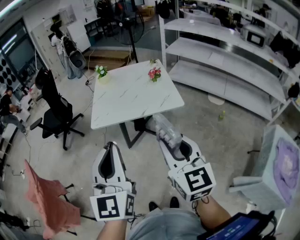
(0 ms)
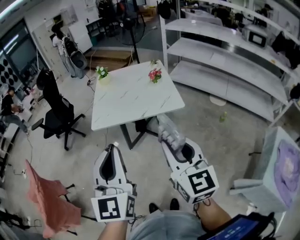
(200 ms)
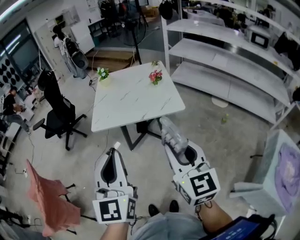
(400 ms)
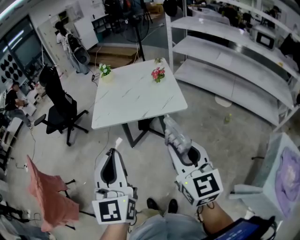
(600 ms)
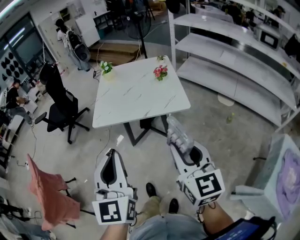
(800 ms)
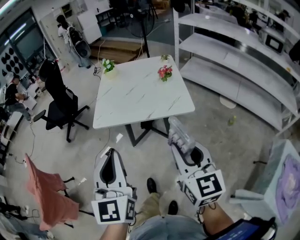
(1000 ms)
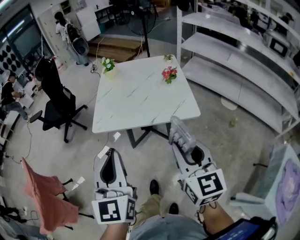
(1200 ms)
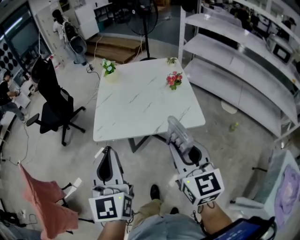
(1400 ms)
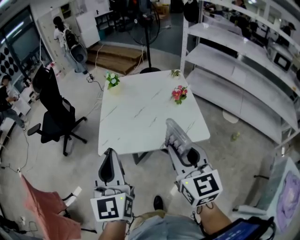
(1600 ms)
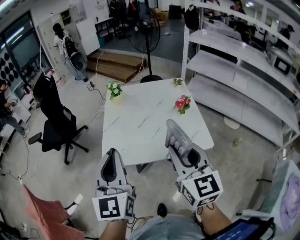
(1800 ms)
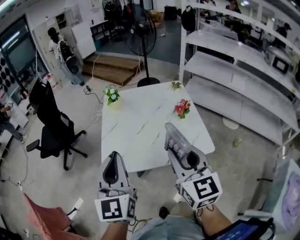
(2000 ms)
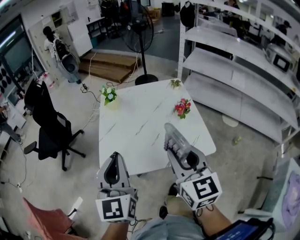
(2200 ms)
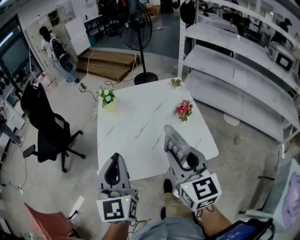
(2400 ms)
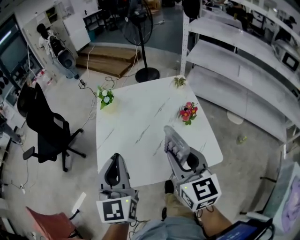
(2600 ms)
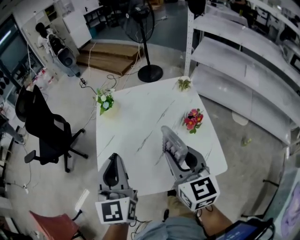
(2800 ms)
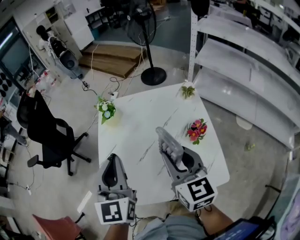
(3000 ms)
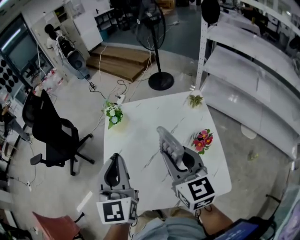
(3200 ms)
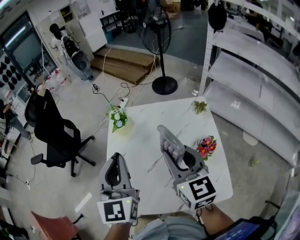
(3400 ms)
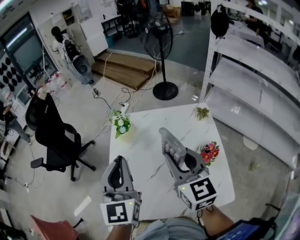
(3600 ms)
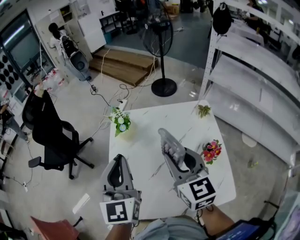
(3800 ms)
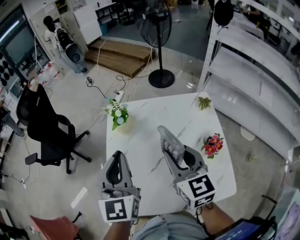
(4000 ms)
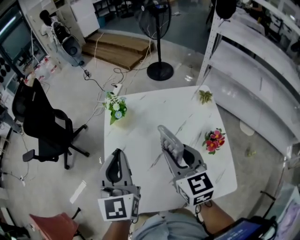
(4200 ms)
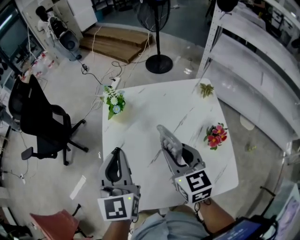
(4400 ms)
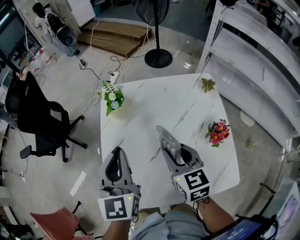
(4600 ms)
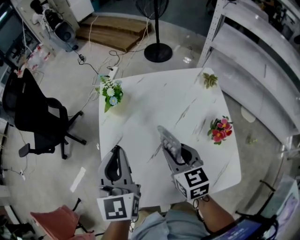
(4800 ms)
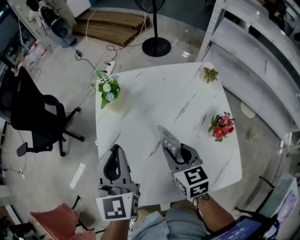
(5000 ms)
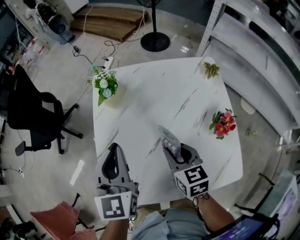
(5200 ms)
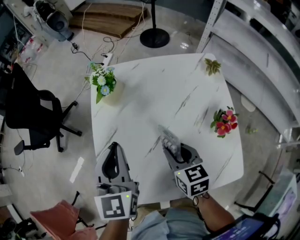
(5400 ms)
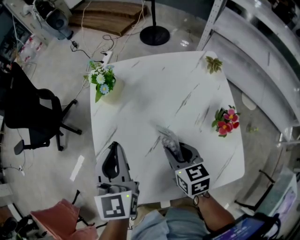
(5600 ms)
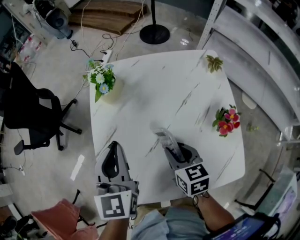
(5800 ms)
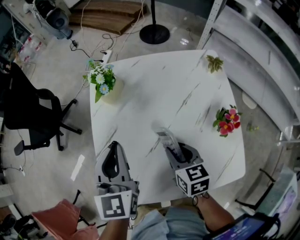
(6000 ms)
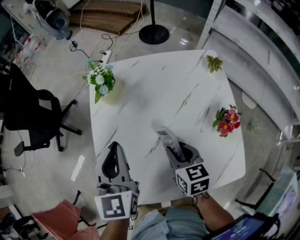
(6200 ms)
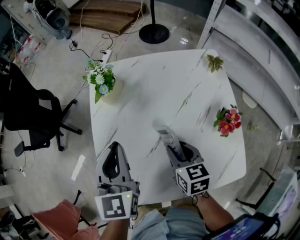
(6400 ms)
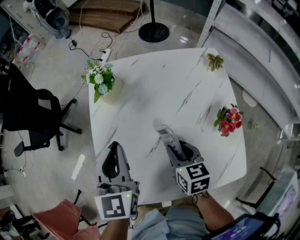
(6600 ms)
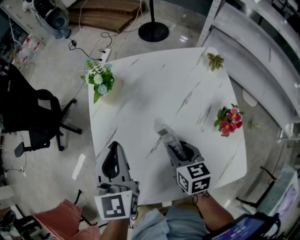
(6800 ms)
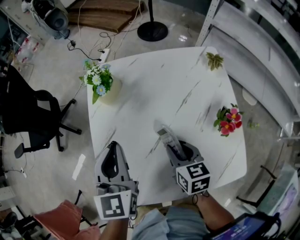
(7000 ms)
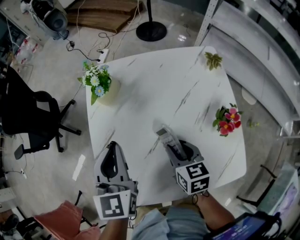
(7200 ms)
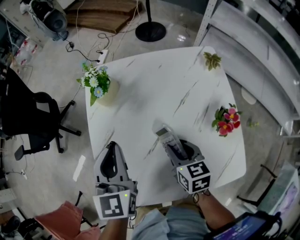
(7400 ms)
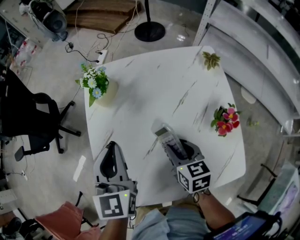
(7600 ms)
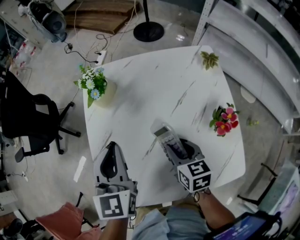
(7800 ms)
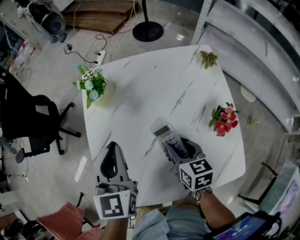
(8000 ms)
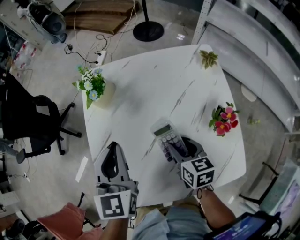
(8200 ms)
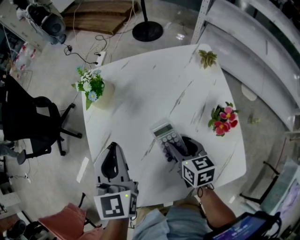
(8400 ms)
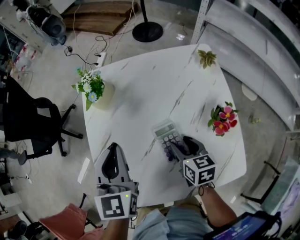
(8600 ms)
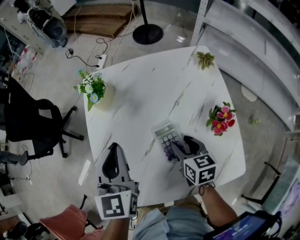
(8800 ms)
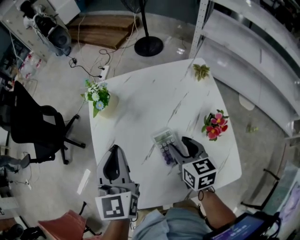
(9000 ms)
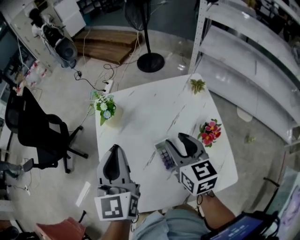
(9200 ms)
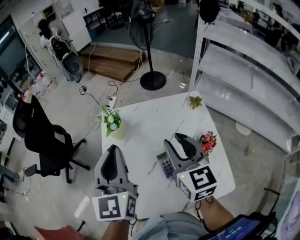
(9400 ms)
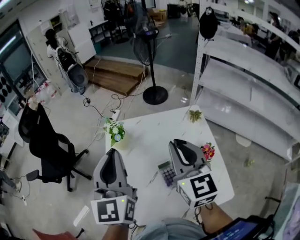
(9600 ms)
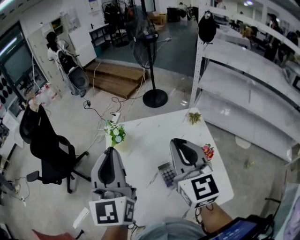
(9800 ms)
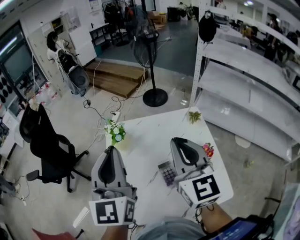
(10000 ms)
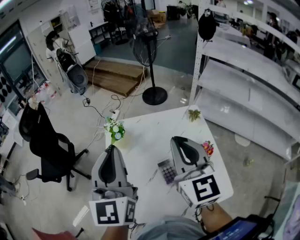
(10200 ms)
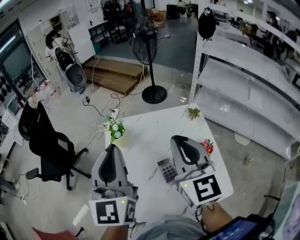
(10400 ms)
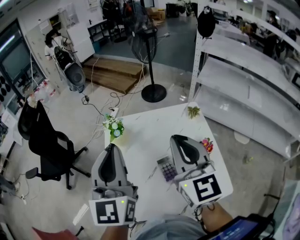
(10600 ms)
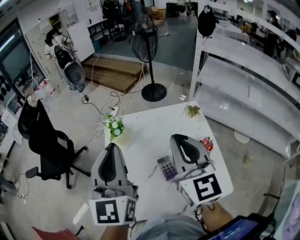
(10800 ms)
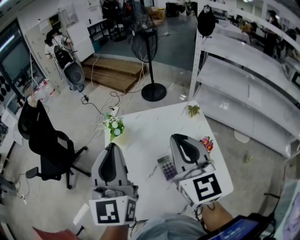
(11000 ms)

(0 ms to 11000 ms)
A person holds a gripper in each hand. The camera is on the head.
0 ms - 1600 ms: Both grippers travel together forward, some 25 cm.
1600 ms - 3200 ms: Both grippers travel together forward, about 35 cm.
3200 ms - 4800 ms: The right gripper is displaced downward by some 15 cm, and rotates some 20 degrees, while the left gripper shifts some 10 cm downward and forward.
4800 ms - 6200 ms: The right gripper shifts approximately 10 cm downward. Meanwhile the left gripper goes some 5 cm downward.
6200 ms - 7800 ms: The grippers stay close to where they were, moving slightly.
7800 ms - 9400 ms: The left gripper heads upward, covering about 15 cm. The right gripper travels upward by approximately 25 cm, and rotates about 30 degrees.
9400 ms - 11000 ms: The two grippers go some 10 cm upward. The right gripper closes its fingers.

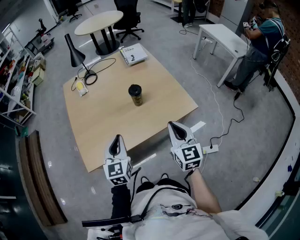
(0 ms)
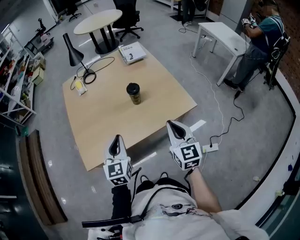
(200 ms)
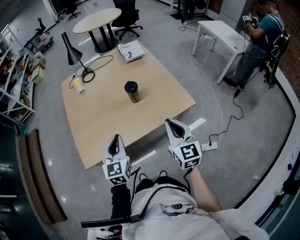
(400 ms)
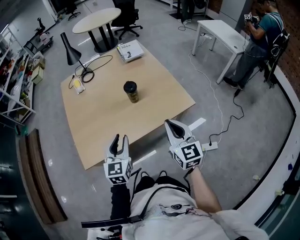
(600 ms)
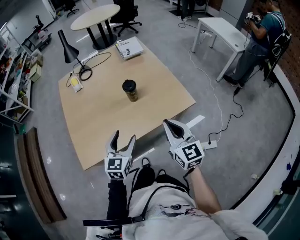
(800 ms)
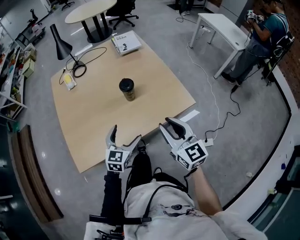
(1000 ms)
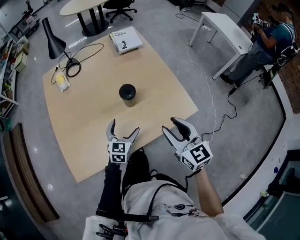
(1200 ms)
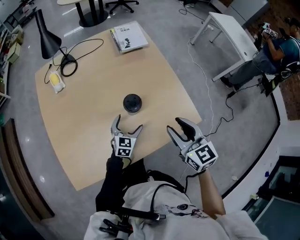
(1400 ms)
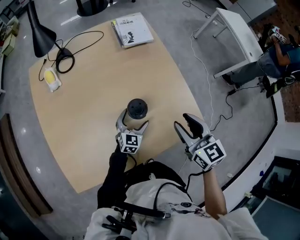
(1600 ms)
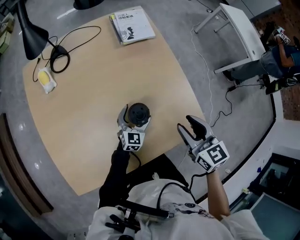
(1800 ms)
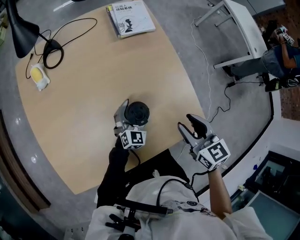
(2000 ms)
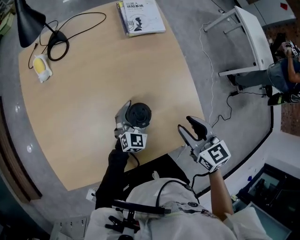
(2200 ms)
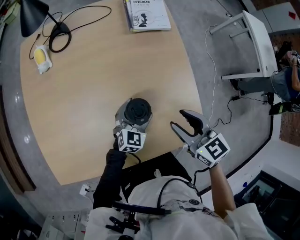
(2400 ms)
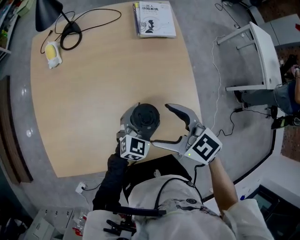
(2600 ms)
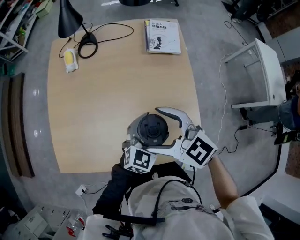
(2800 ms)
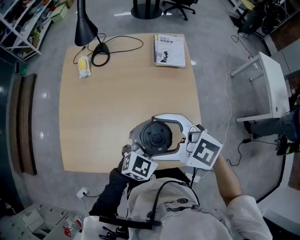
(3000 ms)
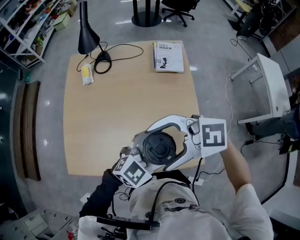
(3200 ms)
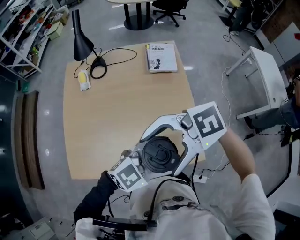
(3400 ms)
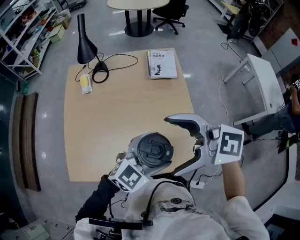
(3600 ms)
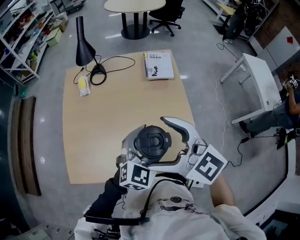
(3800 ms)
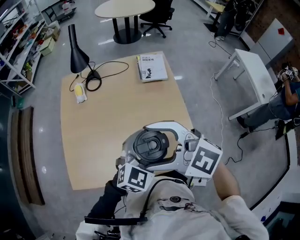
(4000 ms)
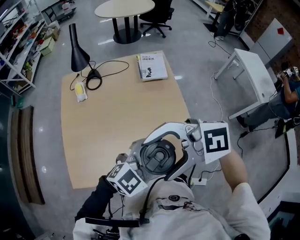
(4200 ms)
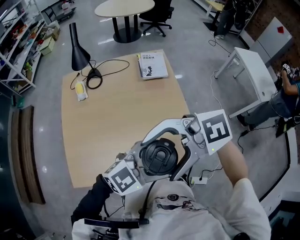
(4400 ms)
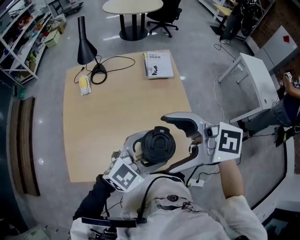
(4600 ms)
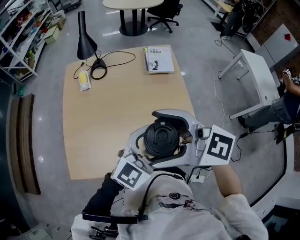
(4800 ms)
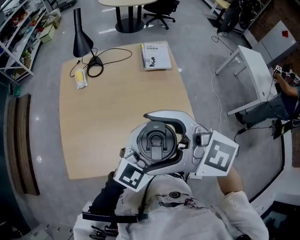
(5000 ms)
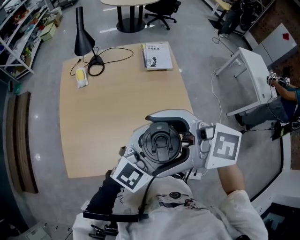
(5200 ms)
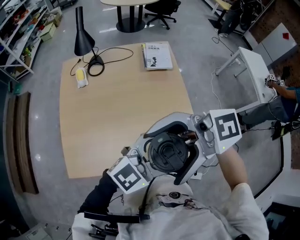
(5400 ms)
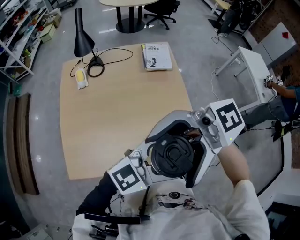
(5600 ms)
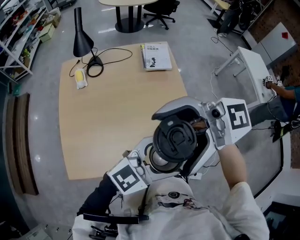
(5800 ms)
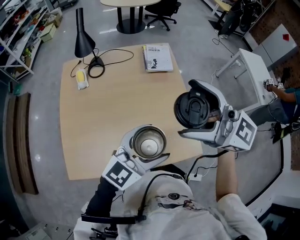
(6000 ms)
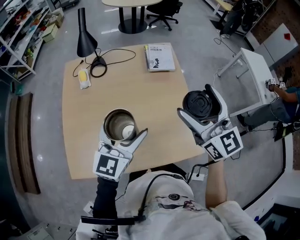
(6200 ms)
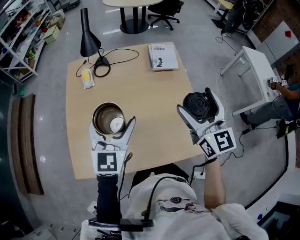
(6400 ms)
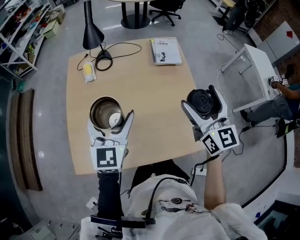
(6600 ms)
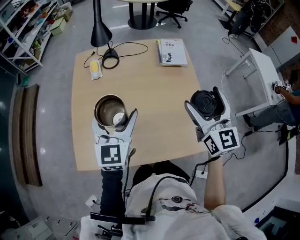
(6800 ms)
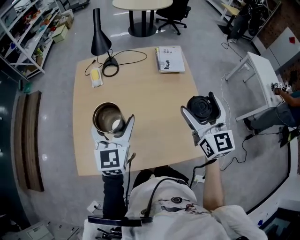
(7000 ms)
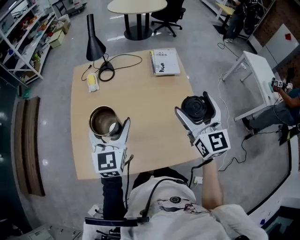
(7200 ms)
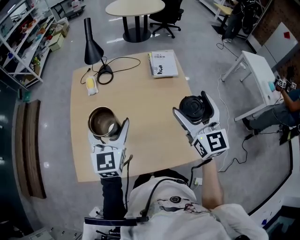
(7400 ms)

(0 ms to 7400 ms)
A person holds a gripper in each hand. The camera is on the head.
0 ms - 1400 ms: The right gripper moves forward, roughly 20 cm. The left gripper heads downward and forward, covering some 35 cm, swivels some 20 degrees, and opens.
1400 ms - 3000 ms: The left gripper moves upward, approximately 20 cm, while the right gripper ends up about 15 cm from where it was, changes its angle by about 70 degrees, and opens its fingers.
3000 ms - 4400 ms: The grippers both shift upward by roughly 15 cm. The right gripper rotates approximately 30 degrees; the left gripper turns by about 40 degrees.
4400 ms - 6000 ms: The left gripper ends up some 10 cm from where it was, and changes its angle by some 30 degrees, while the right gripper moves about 15 cm, and rotates roughly 60 degrees.
6000 ms - 7400 ms: The left gripper heads to the left and forward, covering about 20 cm, and changes its angle by some 50 degrees. The right gripper shifts roughly 10 cm downward, and changes its angle by some 40 degrees.

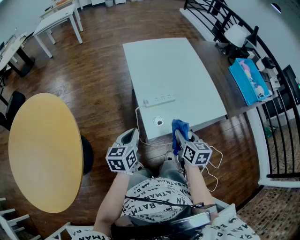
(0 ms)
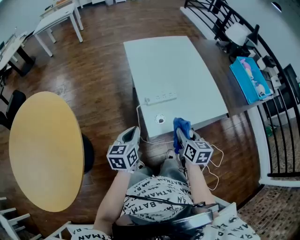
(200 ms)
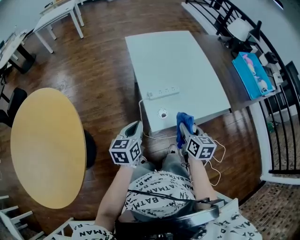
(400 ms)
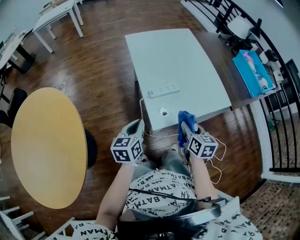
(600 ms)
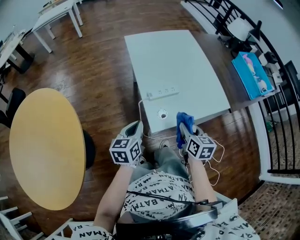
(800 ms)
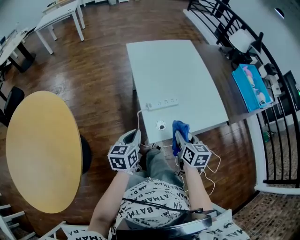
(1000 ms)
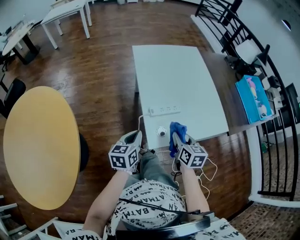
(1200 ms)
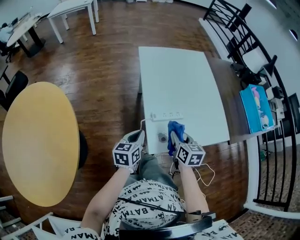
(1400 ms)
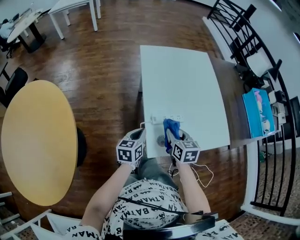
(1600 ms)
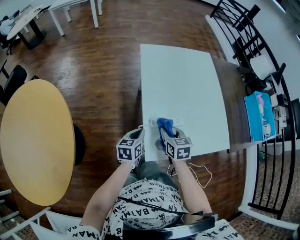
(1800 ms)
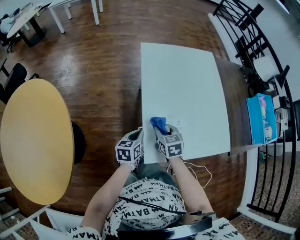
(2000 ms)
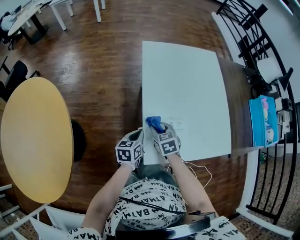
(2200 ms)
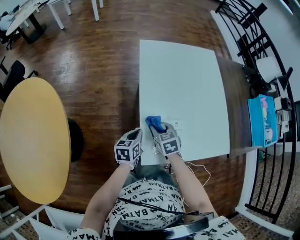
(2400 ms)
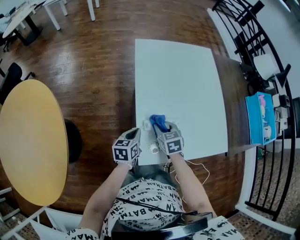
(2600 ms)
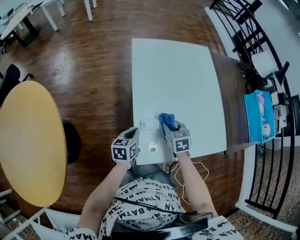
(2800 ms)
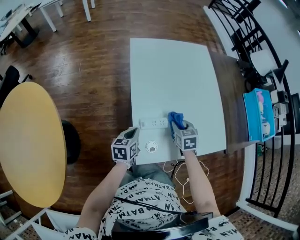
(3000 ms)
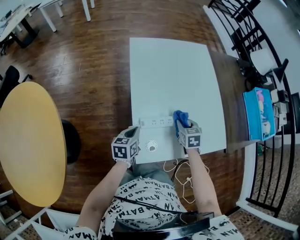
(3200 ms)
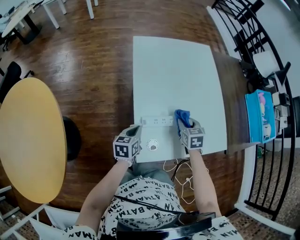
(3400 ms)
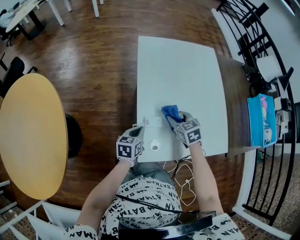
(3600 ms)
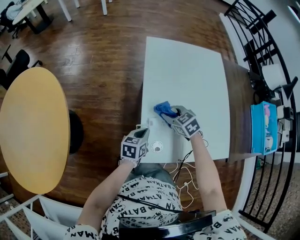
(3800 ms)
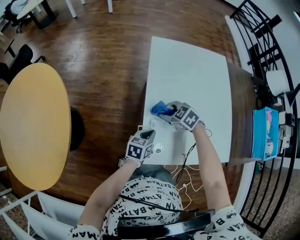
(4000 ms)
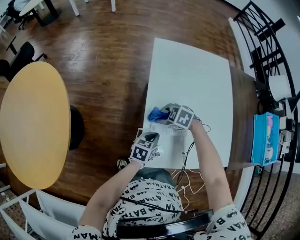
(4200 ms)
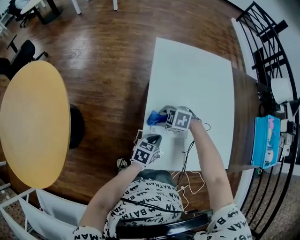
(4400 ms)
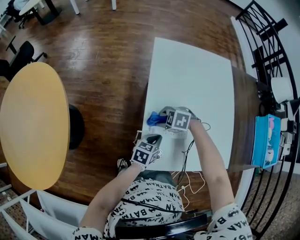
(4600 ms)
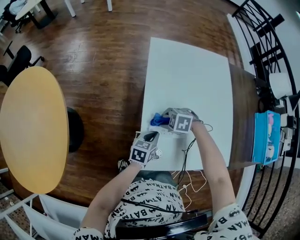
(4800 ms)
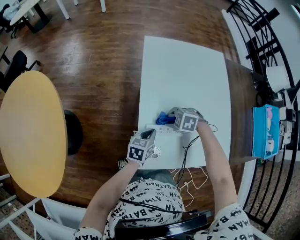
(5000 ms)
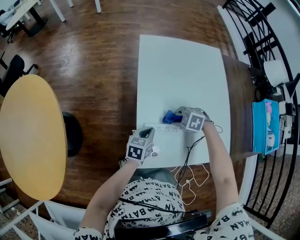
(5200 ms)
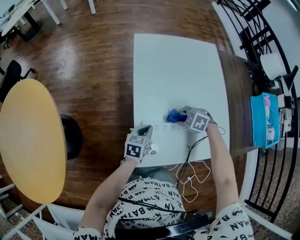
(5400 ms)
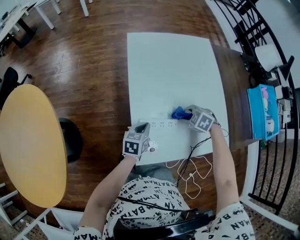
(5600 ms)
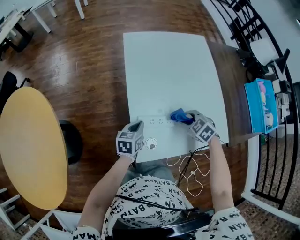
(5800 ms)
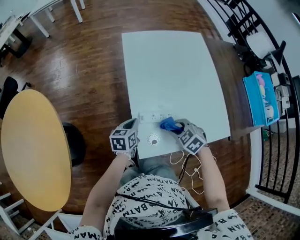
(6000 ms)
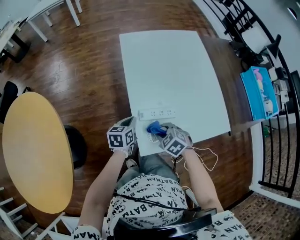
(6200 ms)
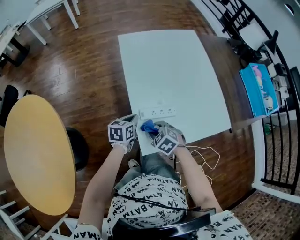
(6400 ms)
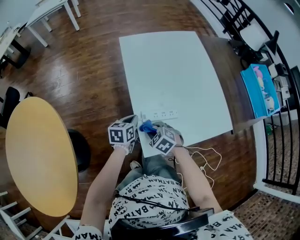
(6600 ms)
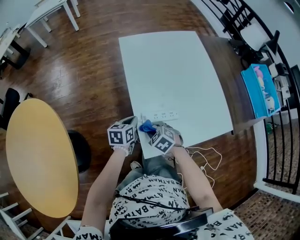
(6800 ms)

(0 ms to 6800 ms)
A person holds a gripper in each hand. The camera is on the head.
0 ms - 1400 ms: The left gripper is displaced forward and downward by some 10 cm; the right gripper shifts about 10 cm forward and to the left.
1400 ms - 2800 ms: The right gripper is displaced forward and downward by approximately 15 cm, and swivels approximately 30 degrees; the left gripper travels downward and forward by roughly 10 cm.
2800 ms - 4000 ms: The right gripper moves approximately 10 cm, and changes its angle by some 50 degrees. The left gripper shifts by about 5 cm.
4000 ms - 5400 ms: The right gripper moves roughly 15 cm.
5400 ms - 6800 ms: The right gripper shifts roughly 15 cm to the left and backward, and swivels about 30 degrees. The left gripper travels to the left by about 5 cm.
